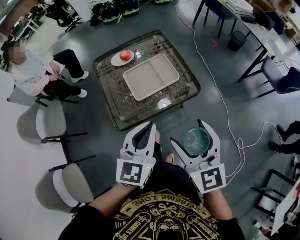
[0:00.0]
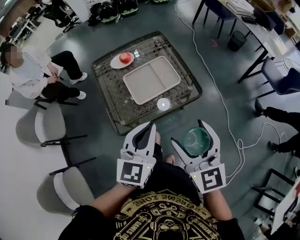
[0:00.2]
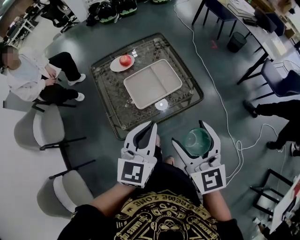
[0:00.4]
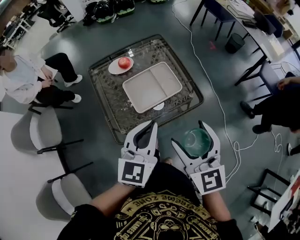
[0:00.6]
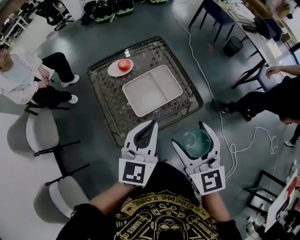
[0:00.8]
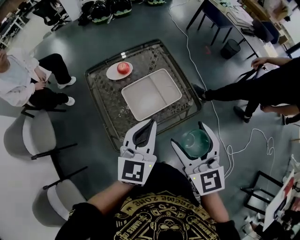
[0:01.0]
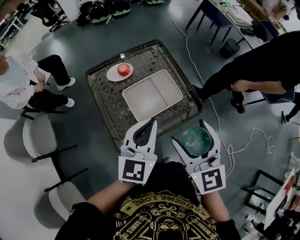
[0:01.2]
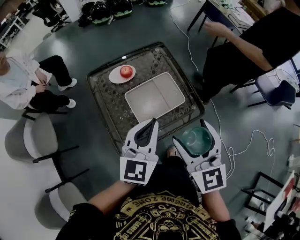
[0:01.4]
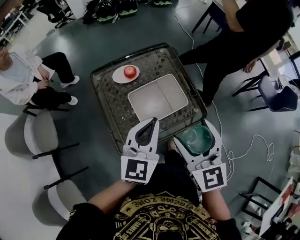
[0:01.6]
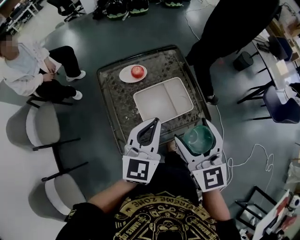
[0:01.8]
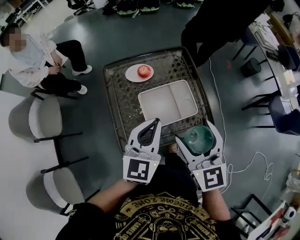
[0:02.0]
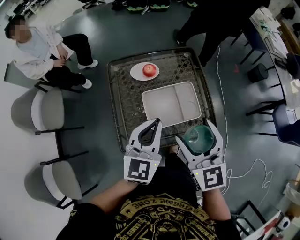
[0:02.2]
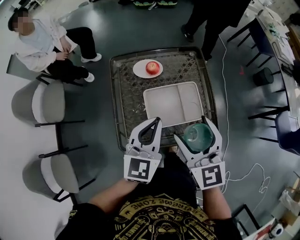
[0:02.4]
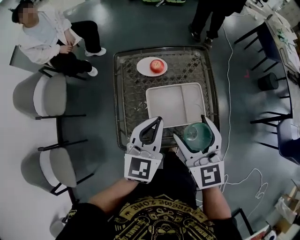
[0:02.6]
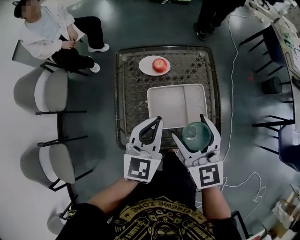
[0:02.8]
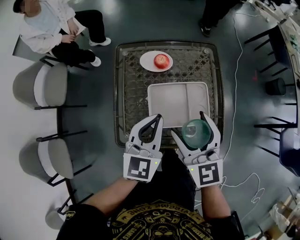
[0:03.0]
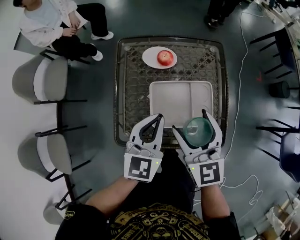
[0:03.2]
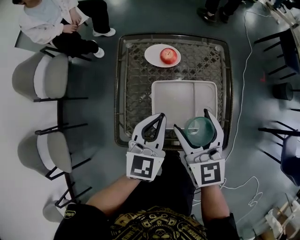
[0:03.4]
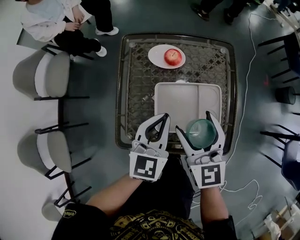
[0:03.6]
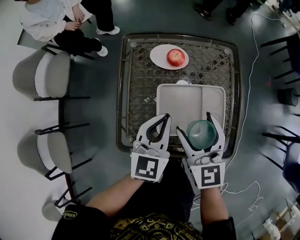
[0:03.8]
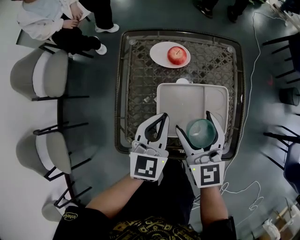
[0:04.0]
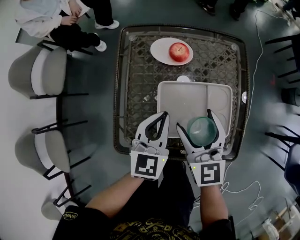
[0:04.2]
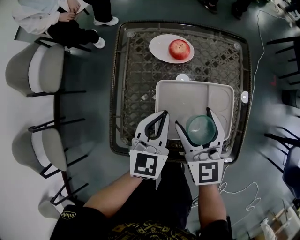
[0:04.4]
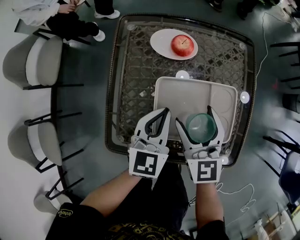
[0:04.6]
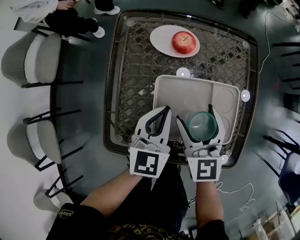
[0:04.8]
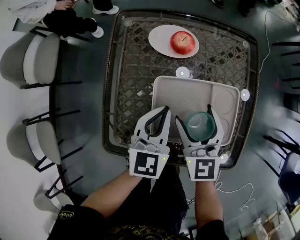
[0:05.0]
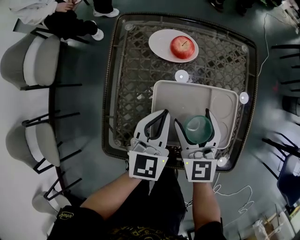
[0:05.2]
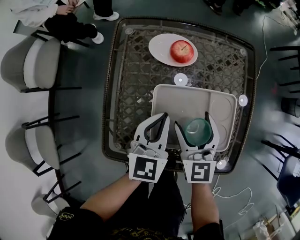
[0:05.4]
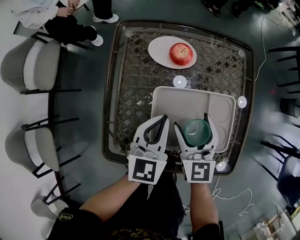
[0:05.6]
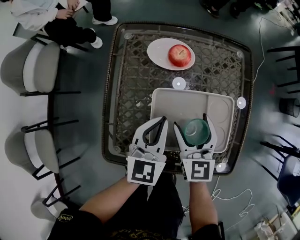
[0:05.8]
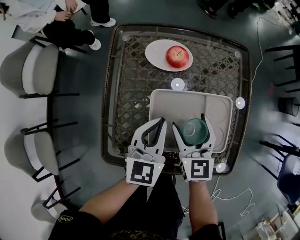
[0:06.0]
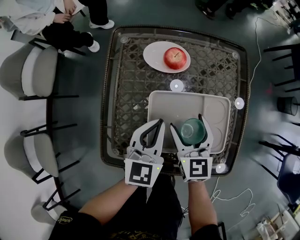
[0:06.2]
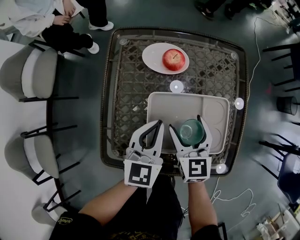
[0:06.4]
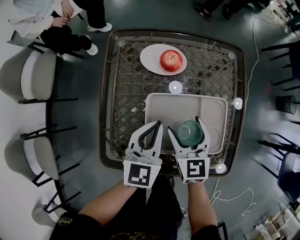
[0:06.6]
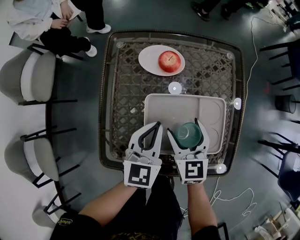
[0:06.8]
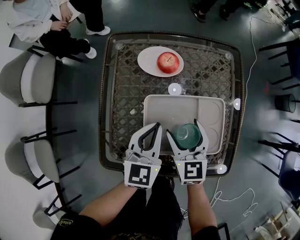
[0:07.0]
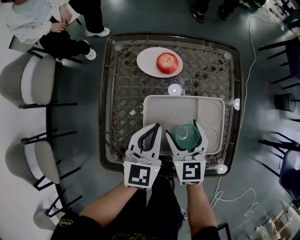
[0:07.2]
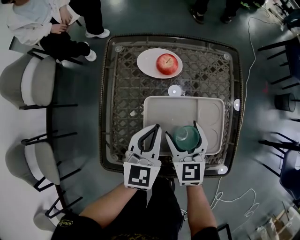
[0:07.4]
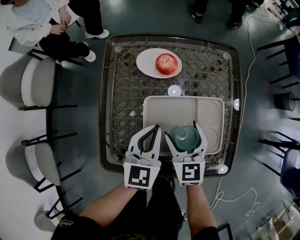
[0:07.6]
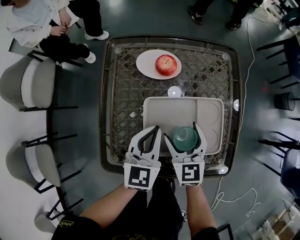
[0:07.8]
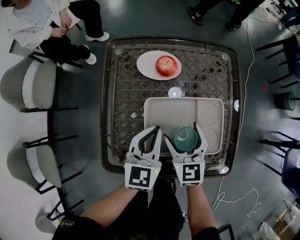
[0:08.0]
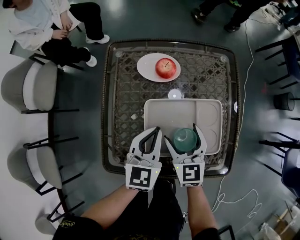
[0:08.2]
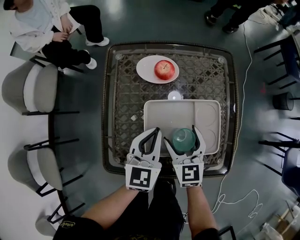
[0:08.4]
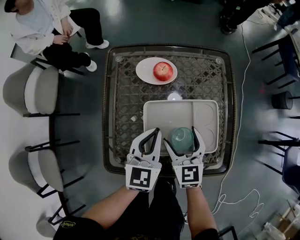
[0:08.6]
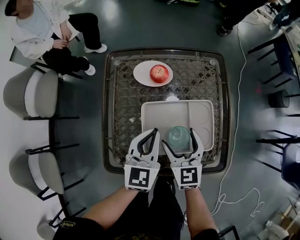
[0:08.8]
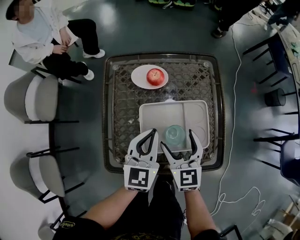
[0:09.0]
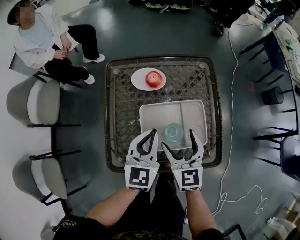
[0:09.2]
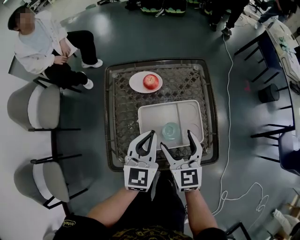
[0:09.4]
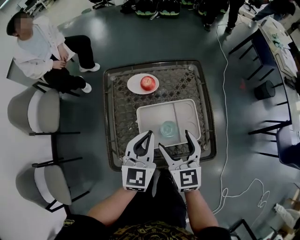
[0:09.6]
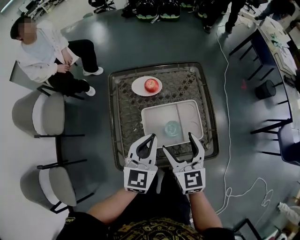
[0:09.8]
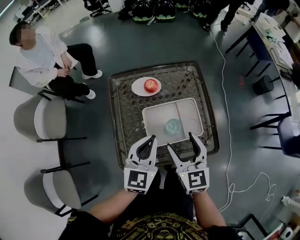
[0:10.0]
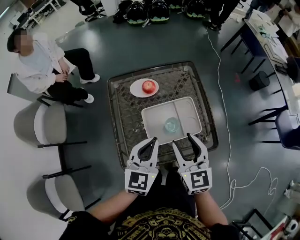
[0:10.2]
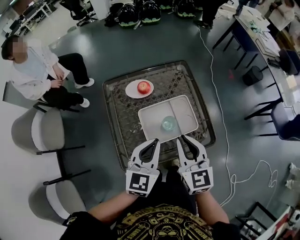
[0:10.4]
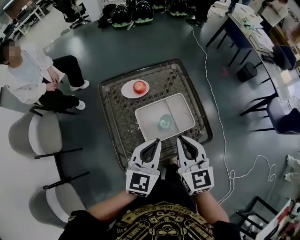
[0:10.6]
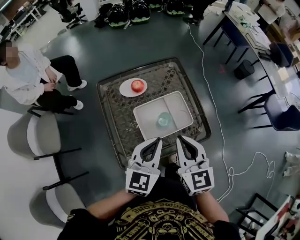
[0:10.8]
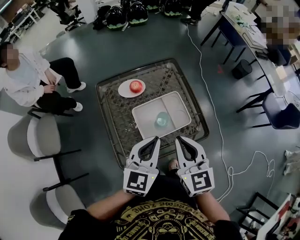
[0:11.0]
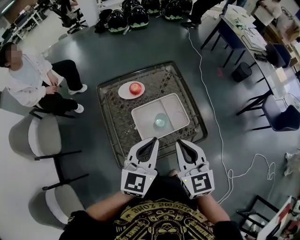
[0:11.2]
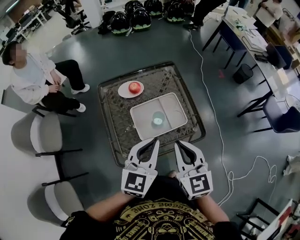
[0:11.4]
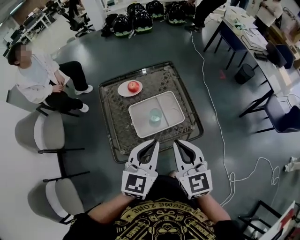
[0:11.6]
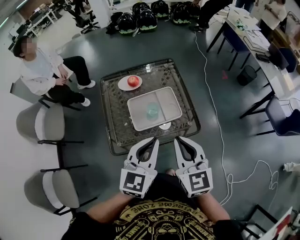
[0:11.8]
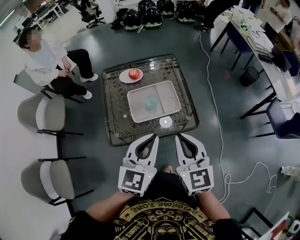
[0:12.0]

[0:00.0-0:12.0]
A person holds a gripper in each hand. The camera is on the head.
0:00.0 to 0:01.6: The two grippers go roughly 20 cm forward and to the left.
0:01.6 to 0:03.0: Both grippers move forward and downward, about 15 cm. The left gripper turns by roughly 20 degrees; the right gripper swivels roughly 30 degrees.
0:03.0 to 0:04.4: Both grippers travel together downward, about 15 cm.
0:04.4 to 0:06.0: The right gripper heads downward, covering some 10 cm.
0:06.0 to 0:07.6: The grippers stay close to where they were, moving slightly.
0:07.6 to 0:09.0: The two grippers go roughly 5 cm upward.
0:09.0 to 0:10.4: The grippers both shift upward and backward by roughly 15 cm. The right gripper closes.
0:10.4 to 0:12.0: Both grippers move backward, to the right and upward, some 20 cm.

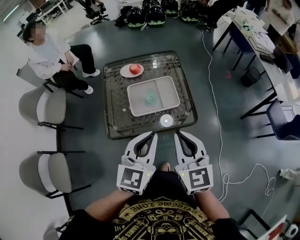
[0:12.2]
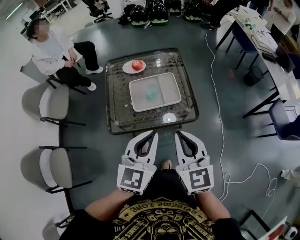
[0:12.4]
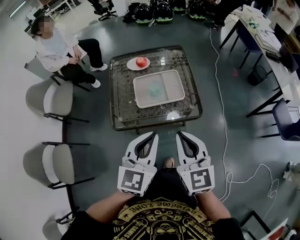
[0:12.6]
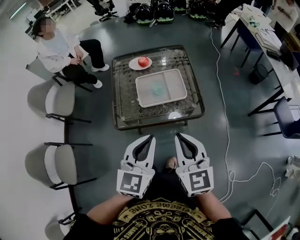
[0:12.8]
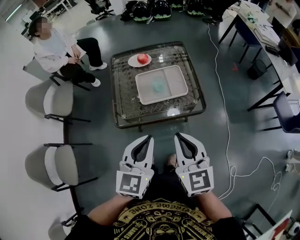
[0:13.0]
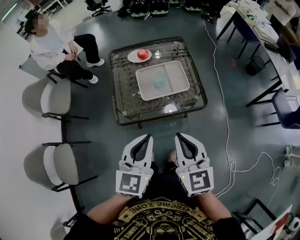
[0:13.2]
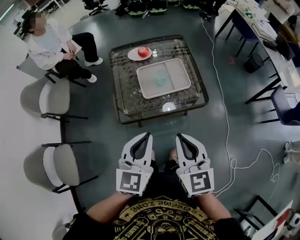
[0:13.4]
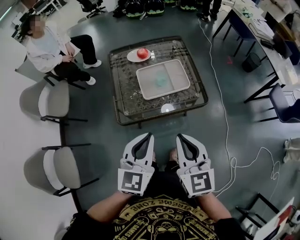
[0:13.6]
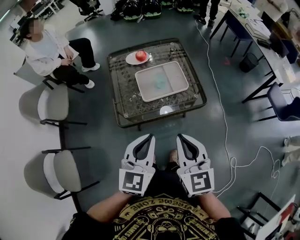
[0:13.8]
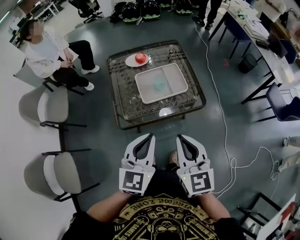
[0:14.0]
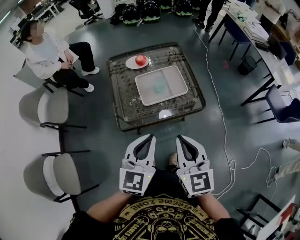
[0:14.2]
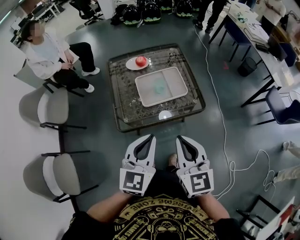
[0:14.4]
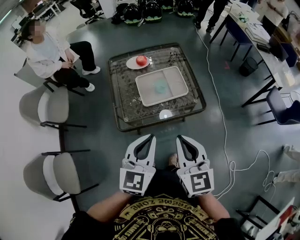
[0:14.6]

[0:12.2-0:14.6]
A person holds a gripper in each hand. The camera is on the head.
0:12.2 to 0:13.4: The left gripper shifts some 10 cm to the left and backward. The right gripper is displaced backward and to the left by about 10 cm.
0:13.4 to 0:14.6: The grippers stay close to where they were, moving slightly.

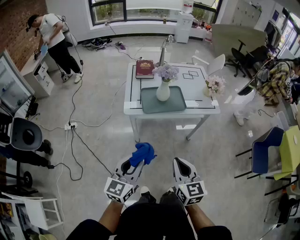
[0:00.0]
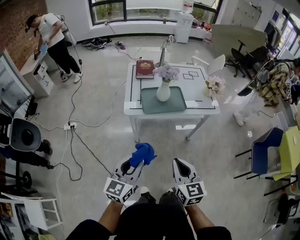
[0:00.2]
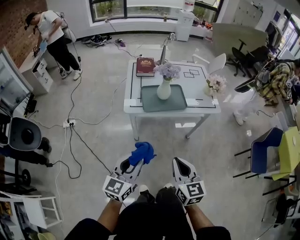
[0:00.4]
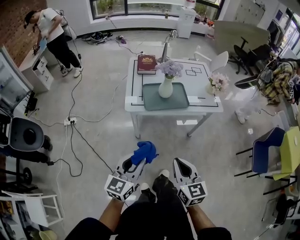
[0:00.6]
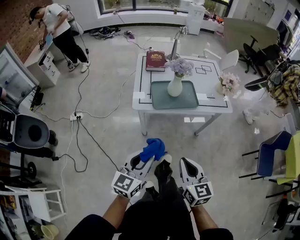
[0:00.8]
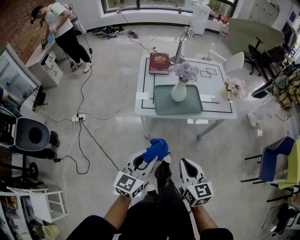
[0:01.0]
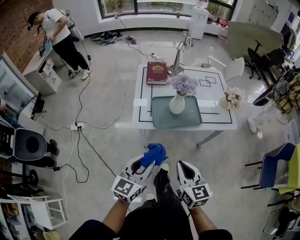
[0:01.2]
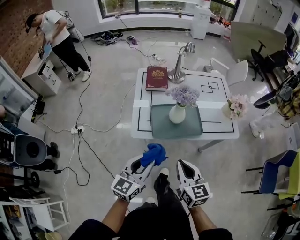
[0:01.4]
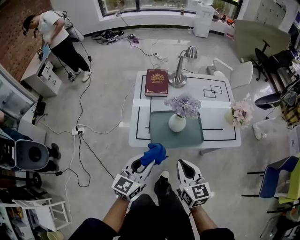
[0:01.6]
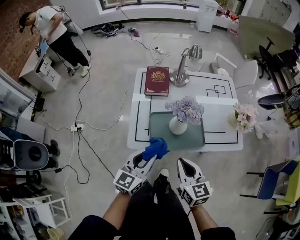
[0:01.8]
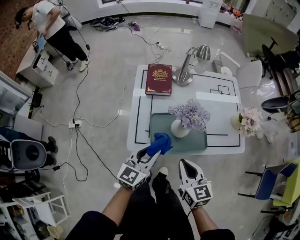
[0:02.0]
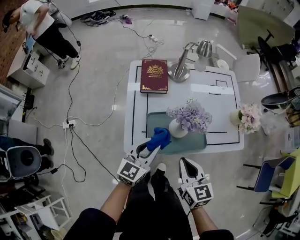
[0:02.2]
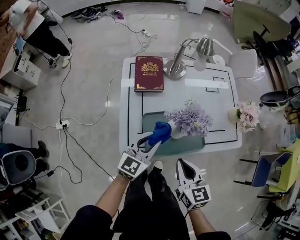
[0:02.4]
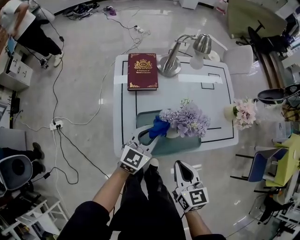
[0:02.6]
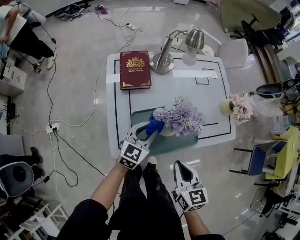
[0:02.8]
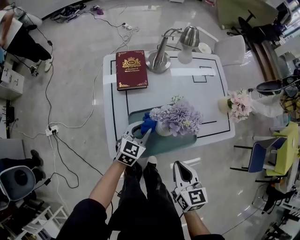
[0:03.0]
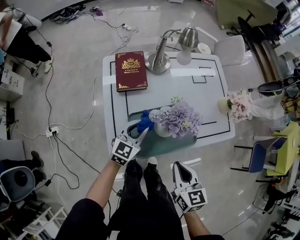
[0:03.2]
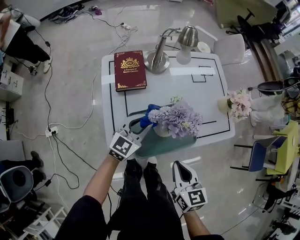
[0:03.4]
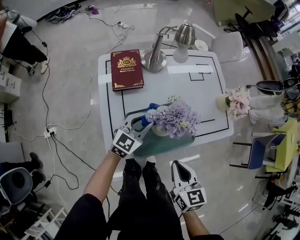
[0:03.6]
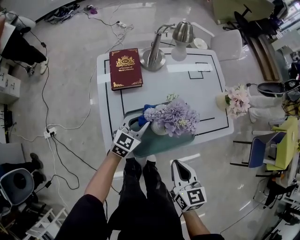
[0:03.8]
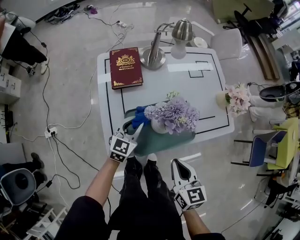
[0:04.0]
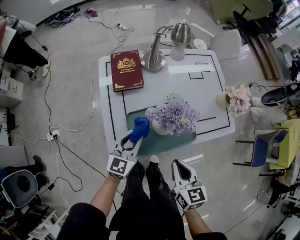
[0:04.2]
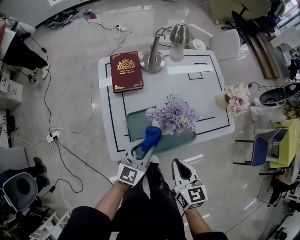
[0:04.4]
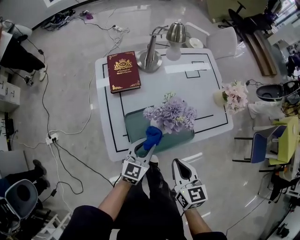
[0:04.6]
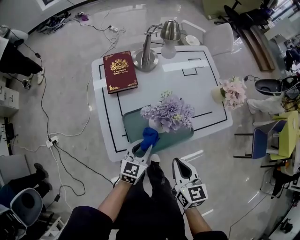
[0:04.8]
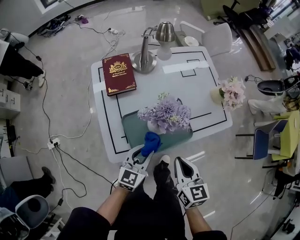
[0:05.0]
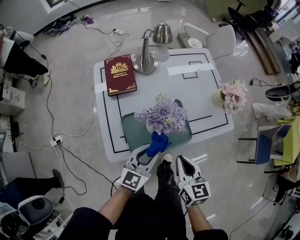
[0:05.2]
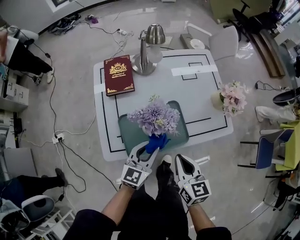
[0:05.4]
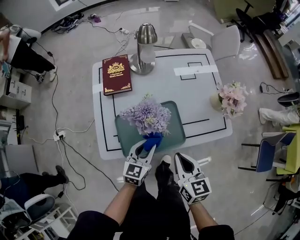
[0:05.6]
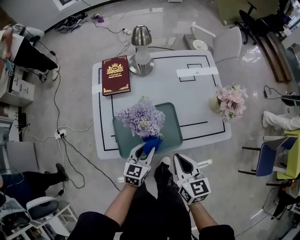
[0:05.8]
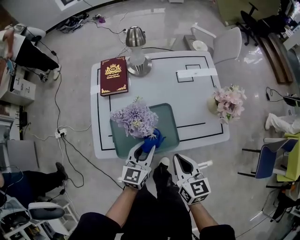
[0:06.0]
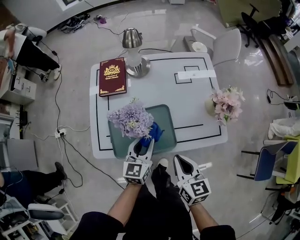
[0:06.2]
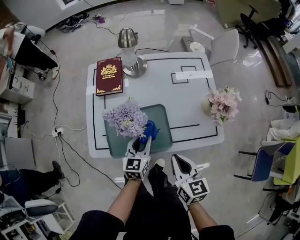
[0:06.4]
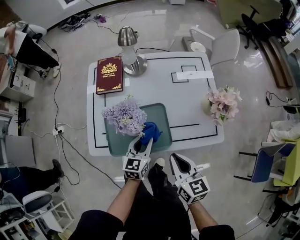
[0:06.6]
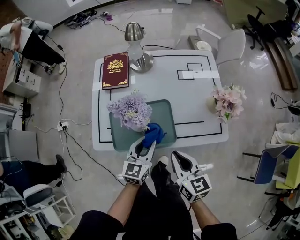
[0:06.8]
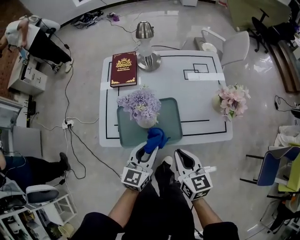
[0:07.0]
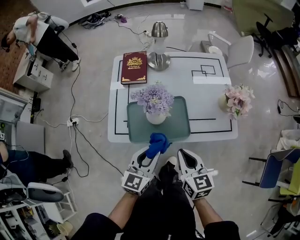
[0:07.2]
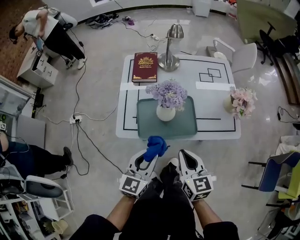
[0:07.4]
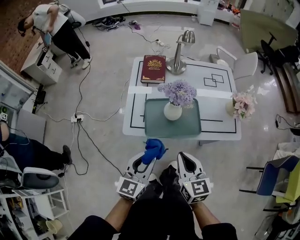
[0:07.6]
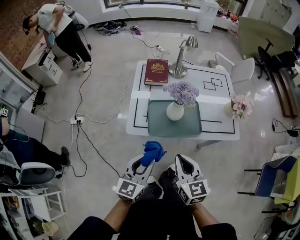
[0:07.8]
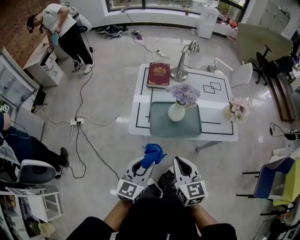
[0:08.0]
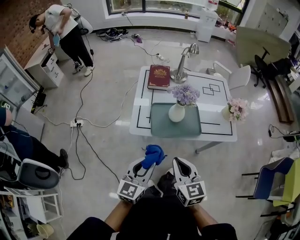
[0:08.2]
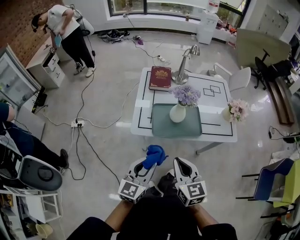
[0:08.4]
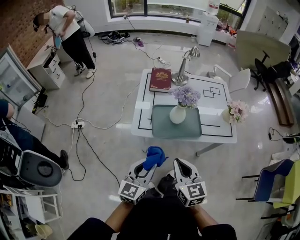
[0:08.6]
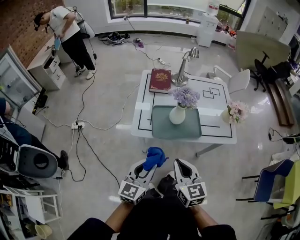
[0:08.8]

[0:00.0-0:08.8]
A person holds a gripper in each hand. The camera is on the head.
0:00.0 to 0:01.4: The grippers both shift forward by some 20 cm.
0:01.4 to 0:03.0: The left gripper travels forward and downward by about 35 cm, and changes its angle by some 30 degrees; the right gripper heads forward and downward, covering approximately 15 cm.
0:03.0 to 0:04.4: The left gripper travels backward and upward by roughly 10 cm.
0:04.4 to 0:05.8: The right gripper heads to the right and forward, covering approximately 10 cm, while the left gripper shifts about 10 cm to the right and downward.
0:05.8 to 0:07.4: The right gripper heads backward, covering approximately 5 cm; the left gripper travels upward, backward and to the left by about 20 cm.
0:07.4 to 0:08.8: The left gripper is displaced backward and to the left by some 15 cm; the right gripper shifts some 15 cm backward, to the left and upward.
